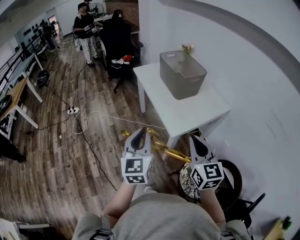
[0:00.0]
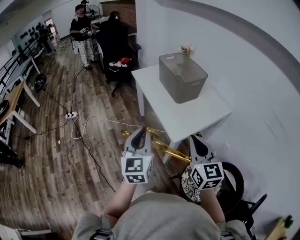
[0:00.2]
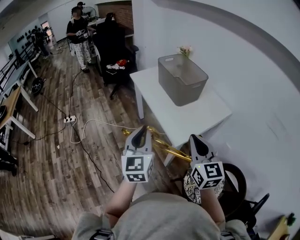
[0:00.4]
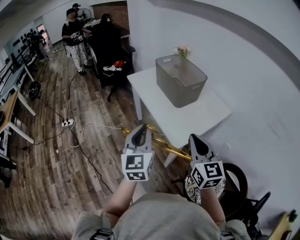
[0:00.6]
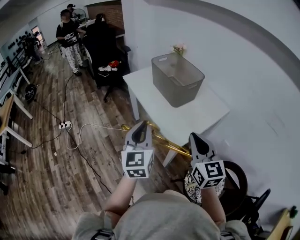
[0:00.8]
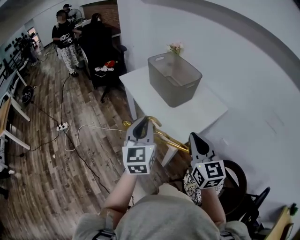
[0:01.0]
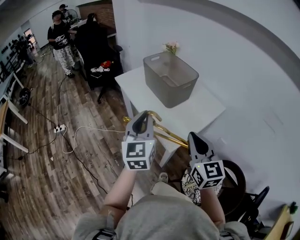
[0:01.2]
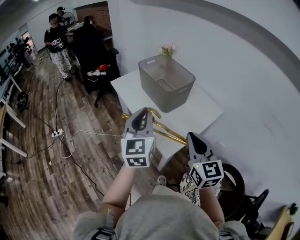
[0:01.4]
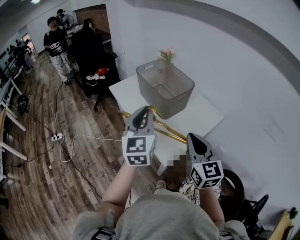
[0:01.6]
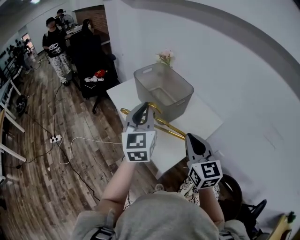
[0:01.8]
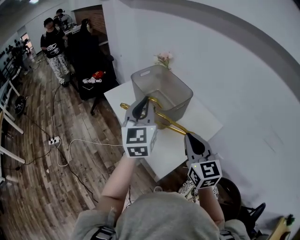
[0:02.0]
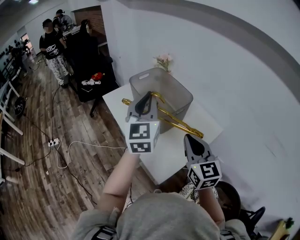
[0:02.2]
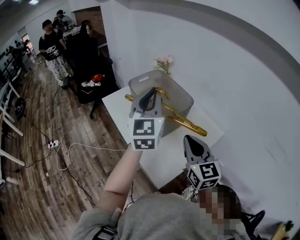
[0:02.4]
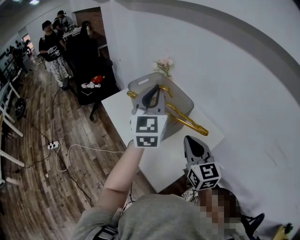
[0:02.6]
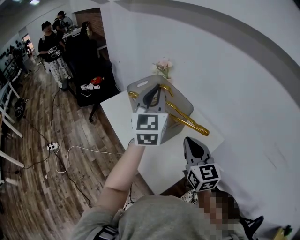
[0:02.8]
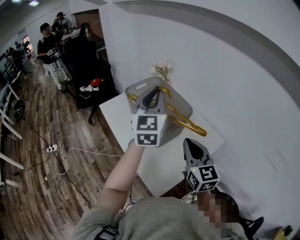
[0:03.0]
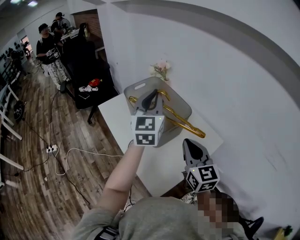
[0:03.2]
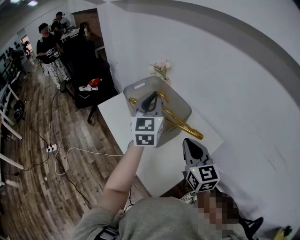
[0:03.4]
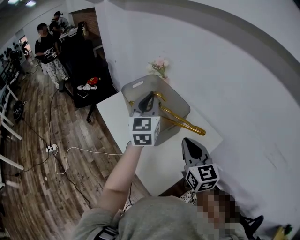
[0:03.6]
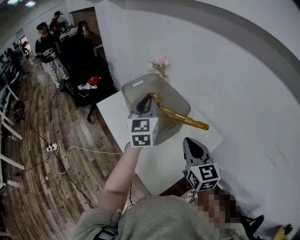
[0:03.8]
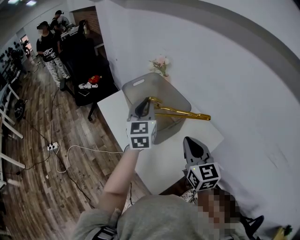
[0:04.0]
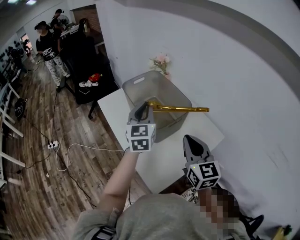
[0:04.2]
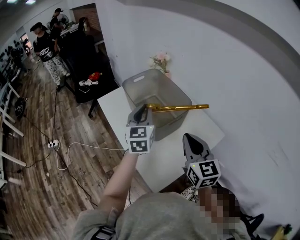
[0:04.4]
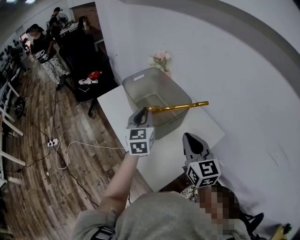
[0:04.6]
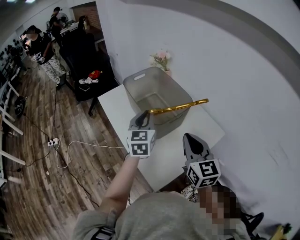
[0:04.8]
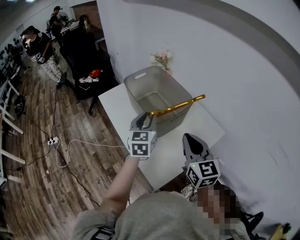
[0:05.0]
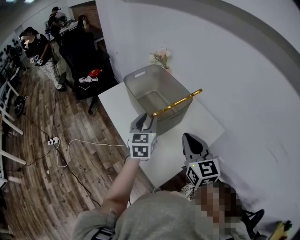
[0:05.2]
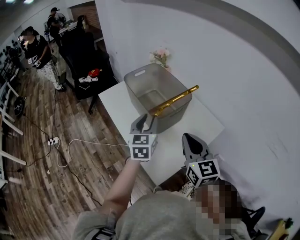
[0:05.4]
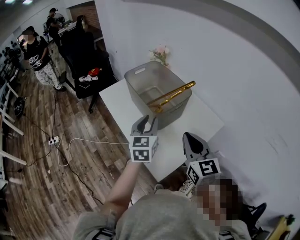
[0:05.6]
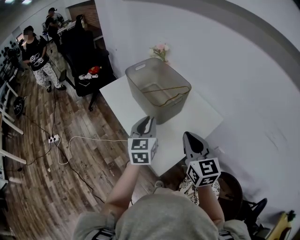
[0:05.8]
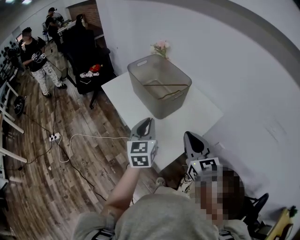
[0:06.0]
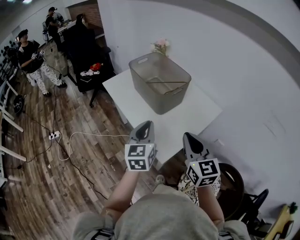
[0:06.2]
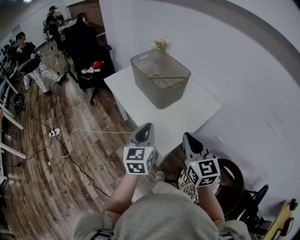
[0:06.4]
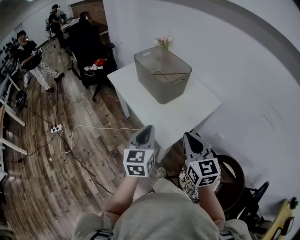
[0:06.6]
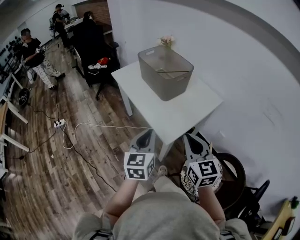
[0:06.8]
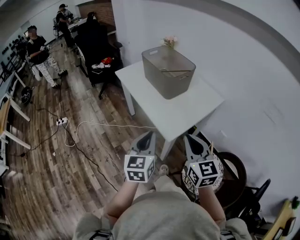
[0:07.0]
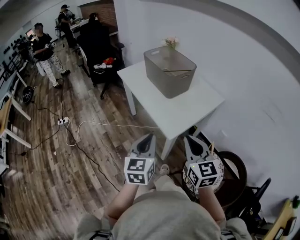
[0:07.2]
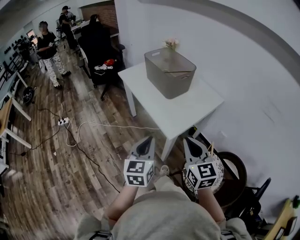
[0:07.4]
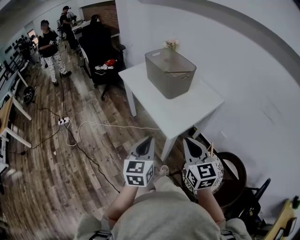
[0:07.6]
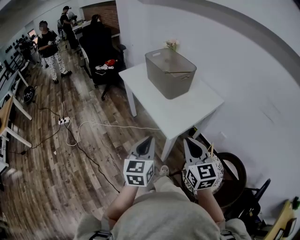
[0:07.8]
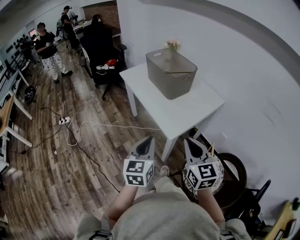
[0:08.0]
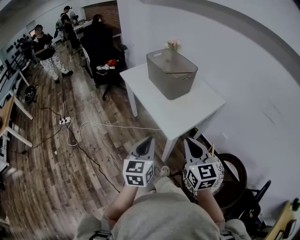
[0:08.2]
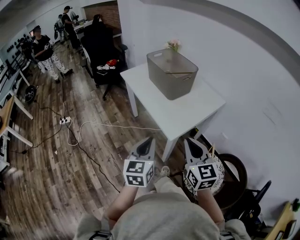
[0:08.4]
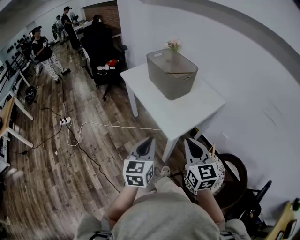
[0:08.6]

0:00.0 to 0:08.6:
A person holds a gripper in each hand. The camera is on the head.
0:00.0 to 0:01.4: The left gripper heads forward, covering about 20 cm. The right gripper heads forward, covering about 15 cm.
0:01.4 to 0:02.8: The left gripper heads forward and to the right, covering some 30 cm. The right gripper shifts about 20 cm forward.
0:02.8 to 0:04.4: The left gripper travels downward by some 15 cm.
0:04.4 to 0:05.8: Both grippers travel together backward, roughly 10 cm.
0:05.8 to 0:07.2: Both grippers move backward, approximately 30 cm.
0:07.2 to 0:08.6: The grippers make only small movements.

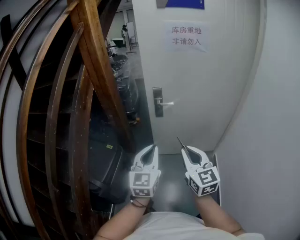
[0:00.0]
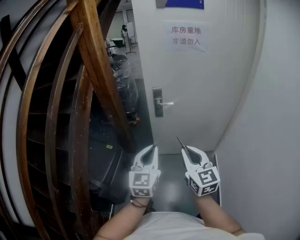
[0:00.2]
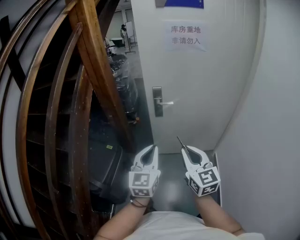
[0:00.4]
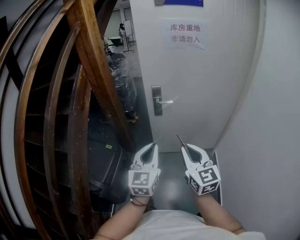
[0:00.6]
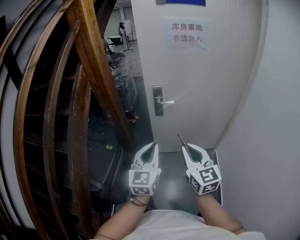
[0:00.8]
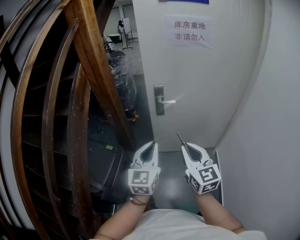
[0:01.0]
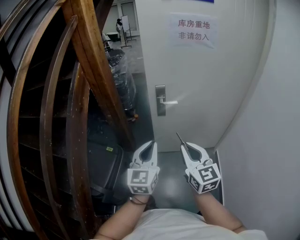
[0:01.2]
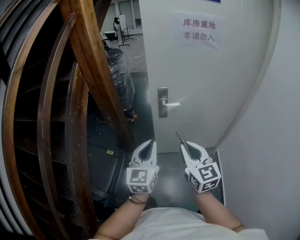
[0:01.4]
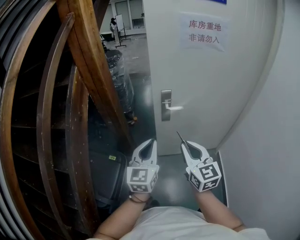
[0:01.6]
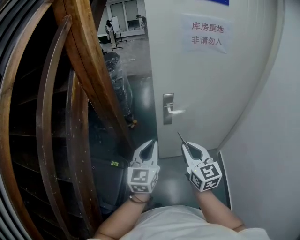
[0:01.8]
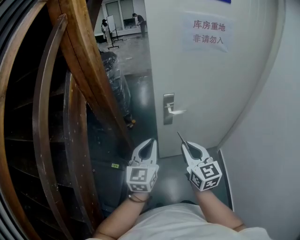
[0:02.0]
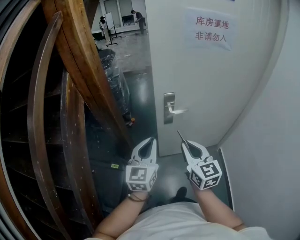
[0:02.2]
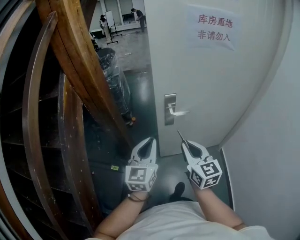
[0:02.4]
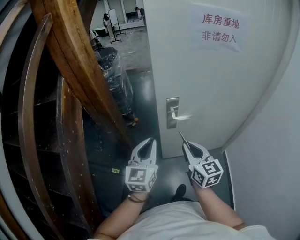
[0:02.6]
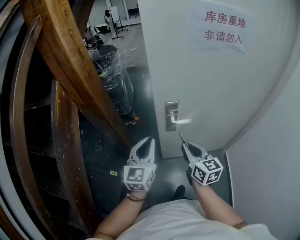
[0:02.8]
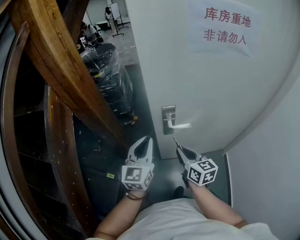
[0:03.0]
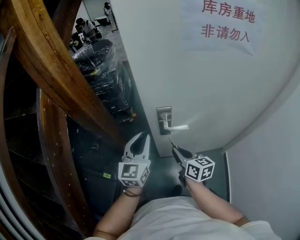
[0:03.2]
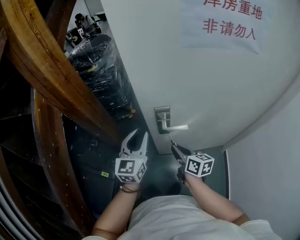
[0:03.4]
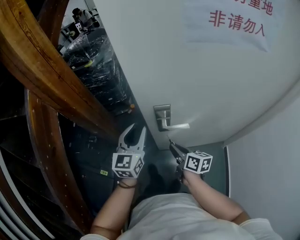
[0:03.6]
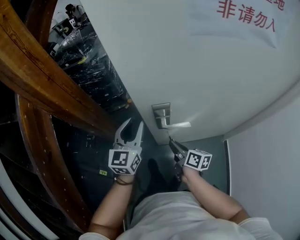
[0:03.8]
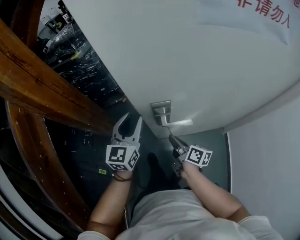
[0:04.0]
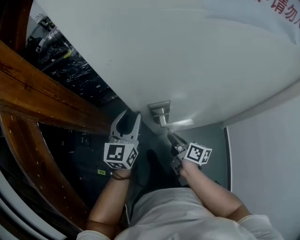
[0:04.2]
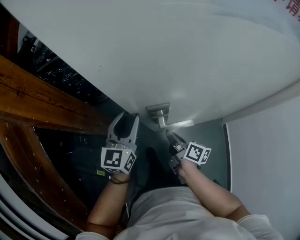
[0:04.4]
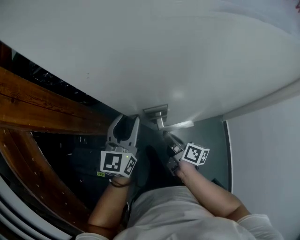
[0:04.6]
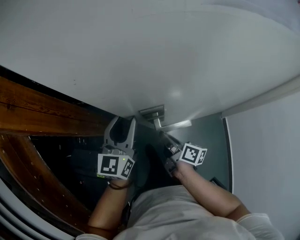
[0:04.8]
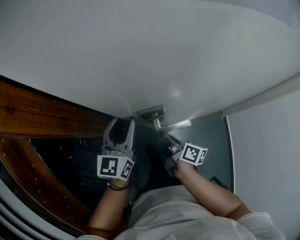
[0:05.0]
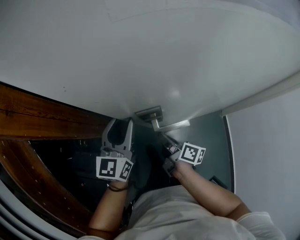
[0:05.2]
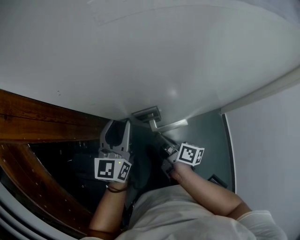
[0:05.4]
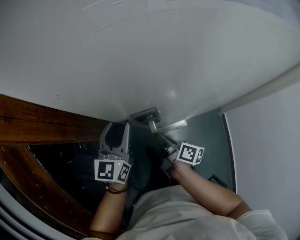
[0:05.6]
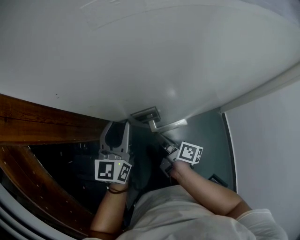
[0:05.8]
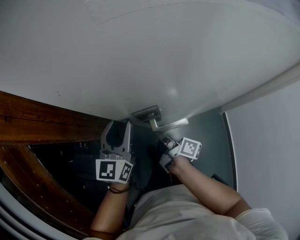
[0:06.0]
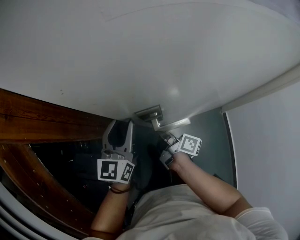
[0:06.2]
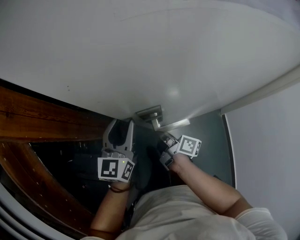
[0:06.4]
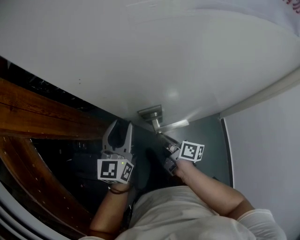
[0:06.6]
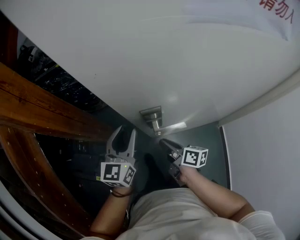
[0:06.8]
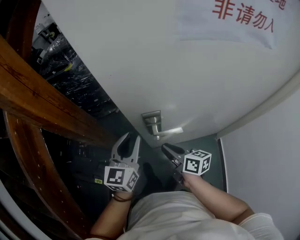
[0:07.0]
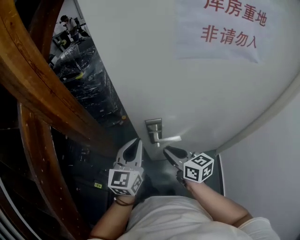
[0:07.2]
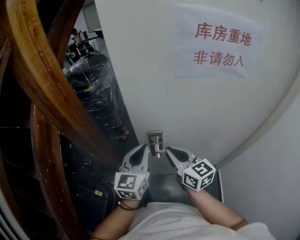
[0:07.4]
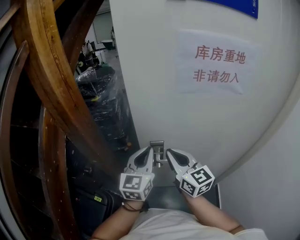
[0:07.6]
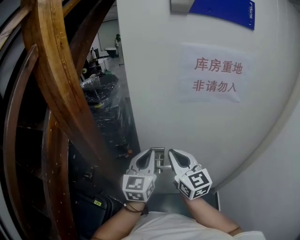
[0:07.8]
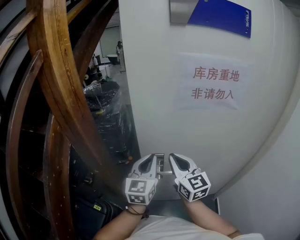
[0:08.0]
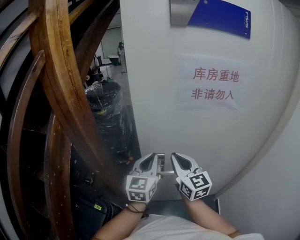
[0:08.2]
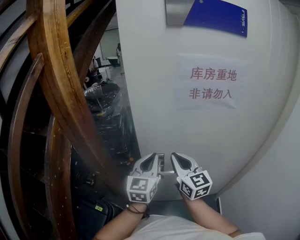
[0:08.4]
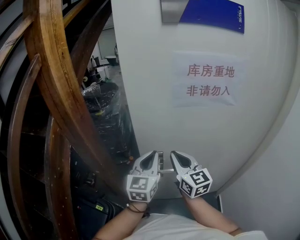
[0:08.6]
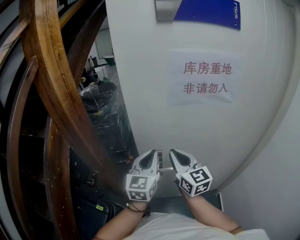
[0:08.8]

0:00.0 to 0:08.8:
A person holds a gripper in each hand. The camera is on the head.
0:00.0 to 0:01.4: Both grippers travel together forward and to the left, approximately 15 cm.
0:01.4 to 0:03.0: The left gripper travels forward by approximately 30 cm, while the right gripper travels forward and downward by approximately 30 cm, and turns by about 30 degrees.
0:03.0 to 0:04.4: The right gripper shifts some 25 cm downward and forward, and twists approximately 50 degrees clockwise, seen from behind. The left gripper shifts about 20 cm forward and downward, and opens its fingers.
0:04.4 to 0:05.8: There are only small adjustments of the grippers.
0:05.8 to 0:07.4: The left gripper shifts about 15 cm upward and backward, and closes up. The right gripper shifts roughly 25 cm upward, and rolls counterclockwise, seen from behind, by approximately 70 degrees.
0:07.4 to 0:08.8: Both grippers travel together upward, approximately 10 cm.

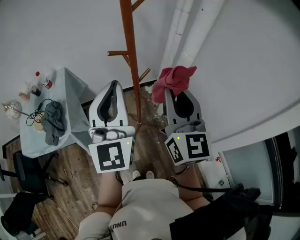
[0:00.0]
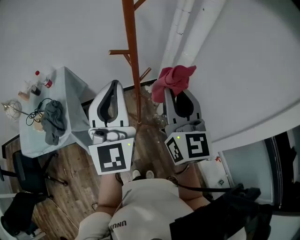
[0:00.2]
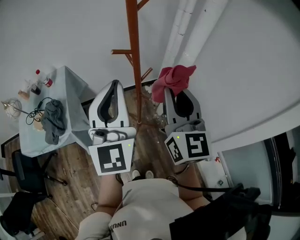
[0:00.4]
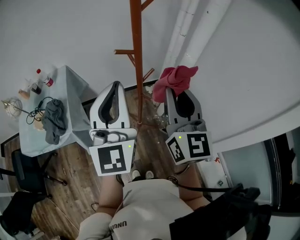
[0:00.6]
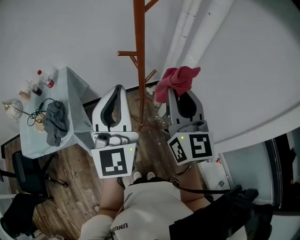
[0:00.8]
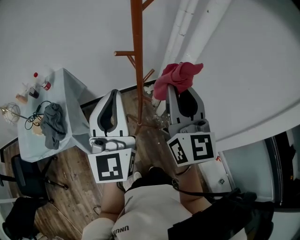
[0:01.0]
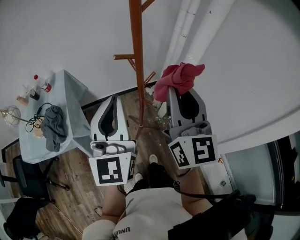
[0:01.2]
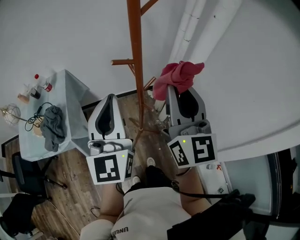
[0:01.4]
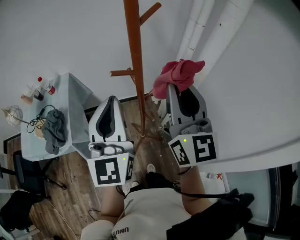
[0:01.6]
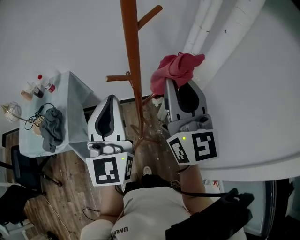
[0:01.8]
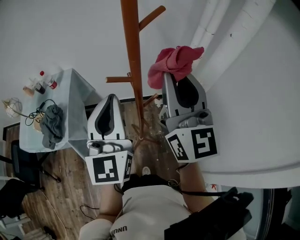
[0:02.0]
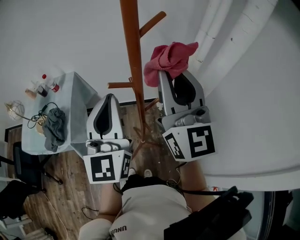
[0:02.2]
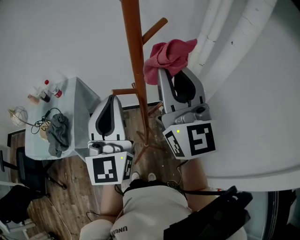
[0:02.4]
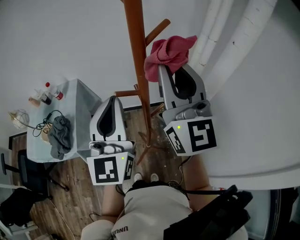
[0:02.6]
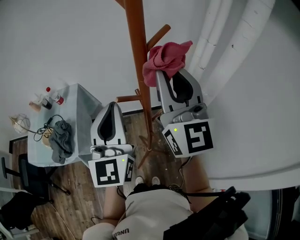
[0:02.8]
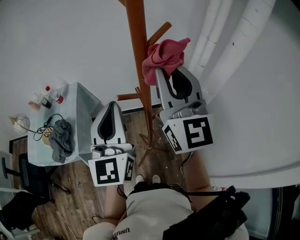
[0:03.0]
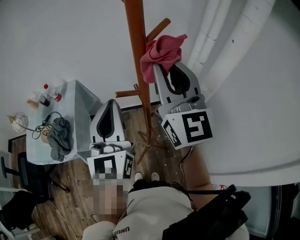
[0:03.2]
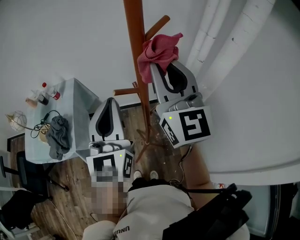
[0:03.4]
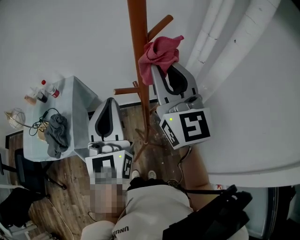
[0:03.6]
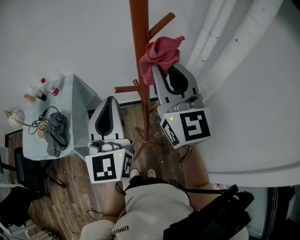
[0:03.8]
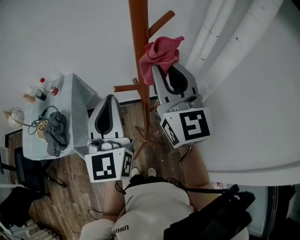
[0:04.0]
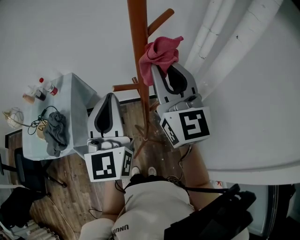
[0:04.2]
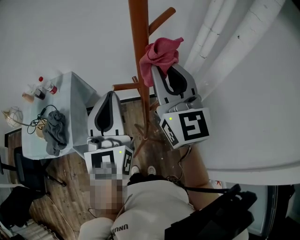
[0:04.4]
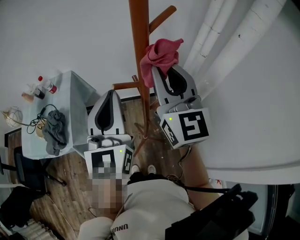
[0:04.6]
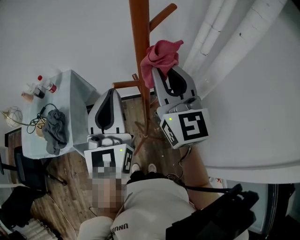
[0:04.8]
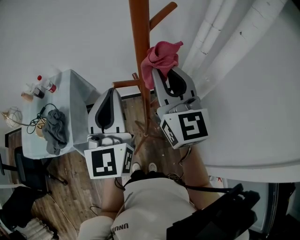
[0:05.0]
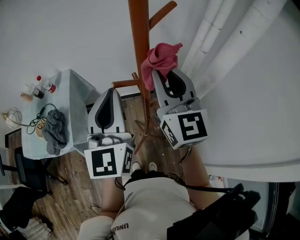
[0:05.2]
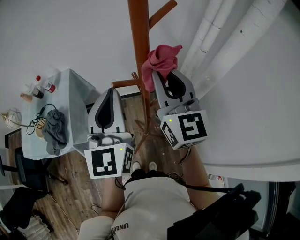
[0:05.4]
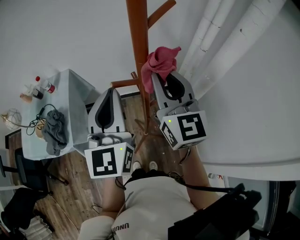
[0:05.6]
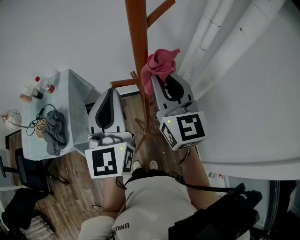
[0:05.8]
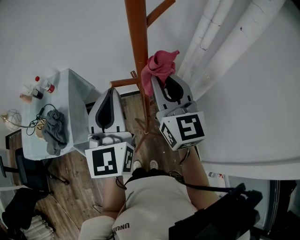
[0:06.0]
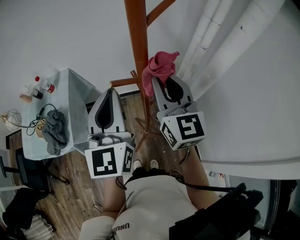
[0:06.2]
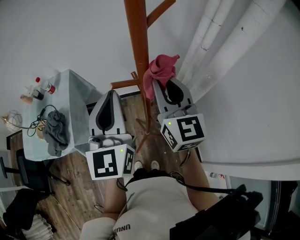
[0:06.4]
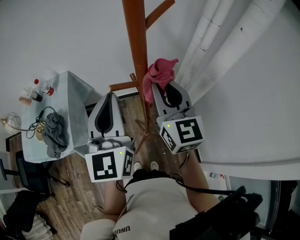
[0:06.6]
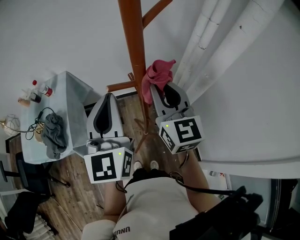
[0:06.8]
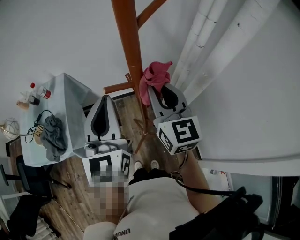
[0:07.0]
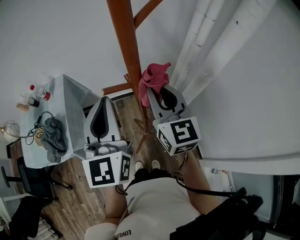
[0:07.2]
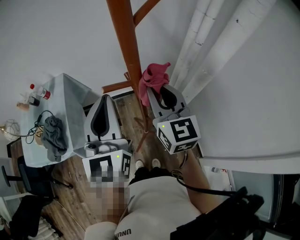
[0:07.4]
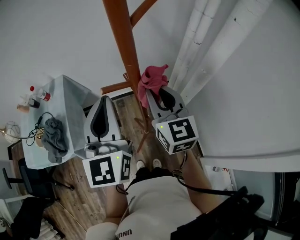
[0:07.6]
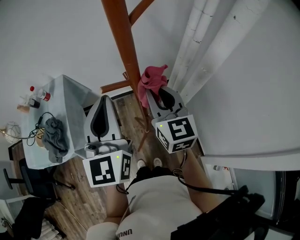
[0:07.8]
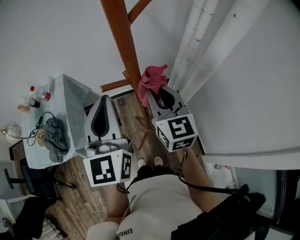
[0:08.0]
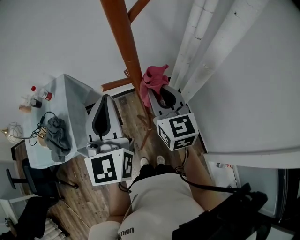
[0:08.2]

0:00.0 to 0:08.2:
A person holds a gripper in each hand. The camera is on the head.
0:00.0 to 0:01.6: The right gripper is displaced forward by roughly 10 cm. Meanwhile the left gripper shifts about 5 cm forward.
0:01.6 to 0:03.2: The right gripper is displaced forward and upward by about 10 cm. The left gripper is displaced forward by about 5 cm.
0:03.2 to 0:05.0: The right gripper is displaced downward by about 5 cm.
0:05.0 to 0:06.6: The right gripper shifts roughly 5 cm downward.
0:06.6 to 0:08.2: The right gripper moves downward, about 5 cm.
